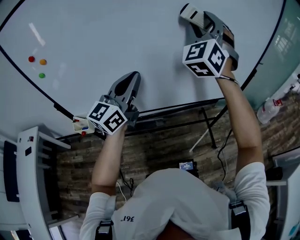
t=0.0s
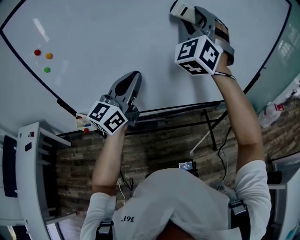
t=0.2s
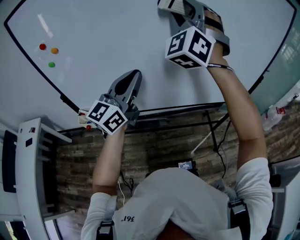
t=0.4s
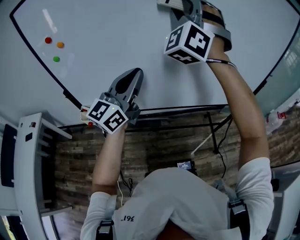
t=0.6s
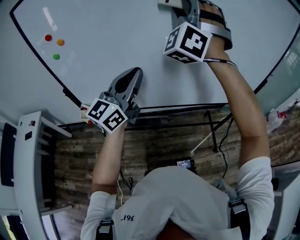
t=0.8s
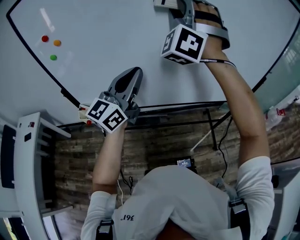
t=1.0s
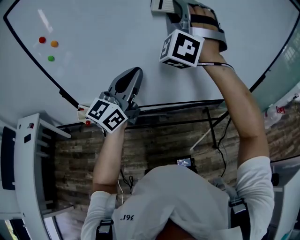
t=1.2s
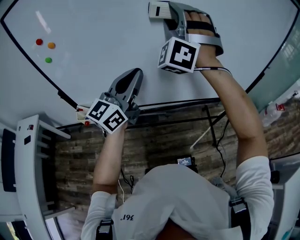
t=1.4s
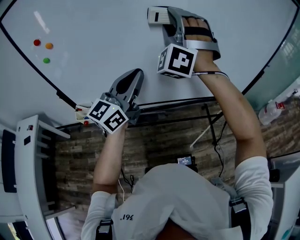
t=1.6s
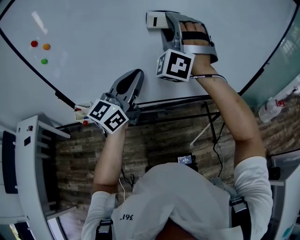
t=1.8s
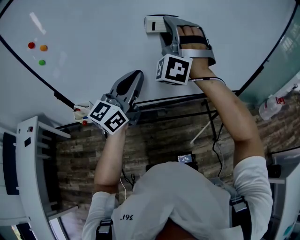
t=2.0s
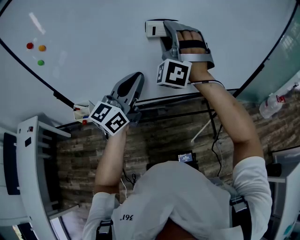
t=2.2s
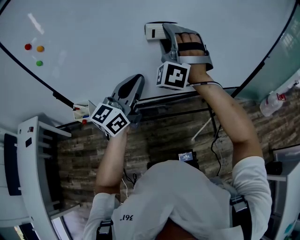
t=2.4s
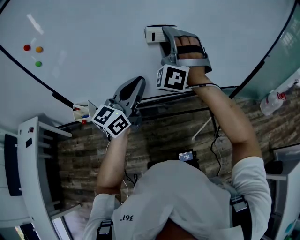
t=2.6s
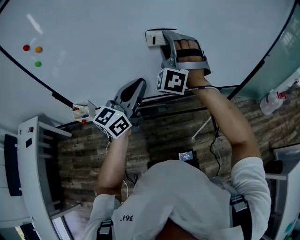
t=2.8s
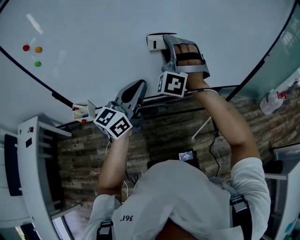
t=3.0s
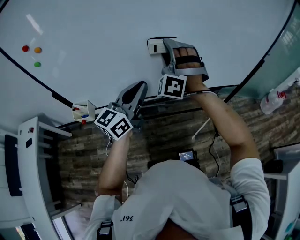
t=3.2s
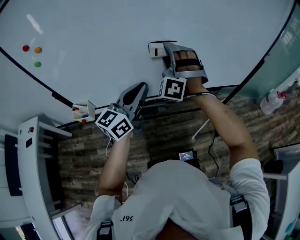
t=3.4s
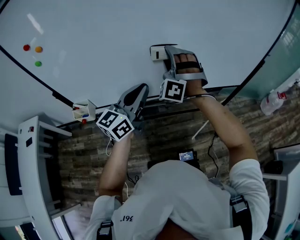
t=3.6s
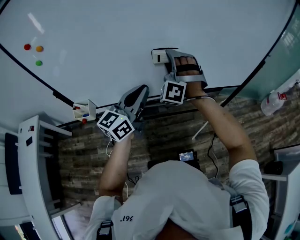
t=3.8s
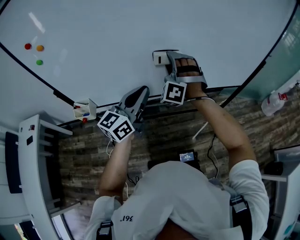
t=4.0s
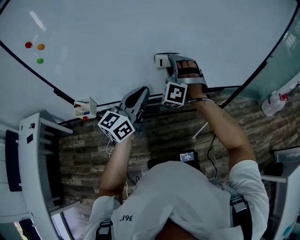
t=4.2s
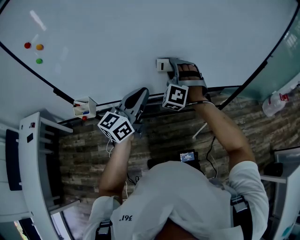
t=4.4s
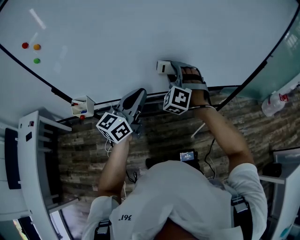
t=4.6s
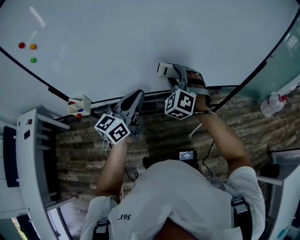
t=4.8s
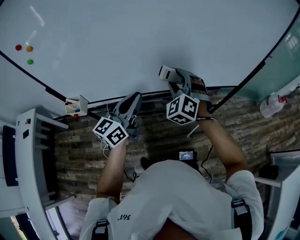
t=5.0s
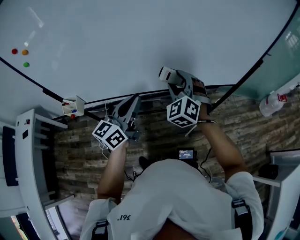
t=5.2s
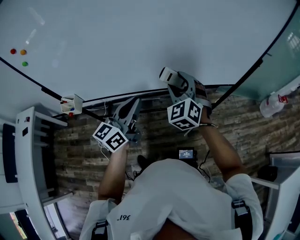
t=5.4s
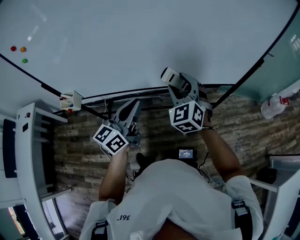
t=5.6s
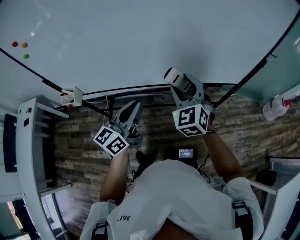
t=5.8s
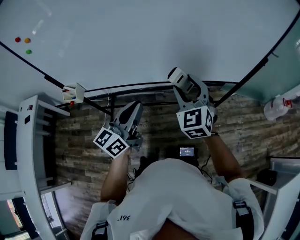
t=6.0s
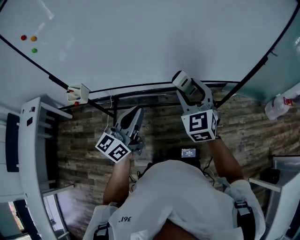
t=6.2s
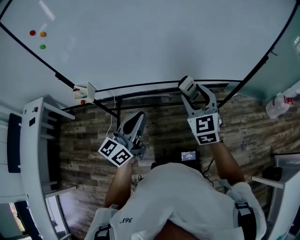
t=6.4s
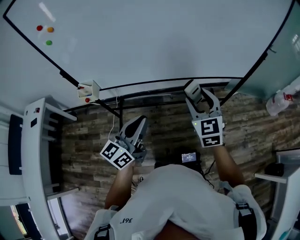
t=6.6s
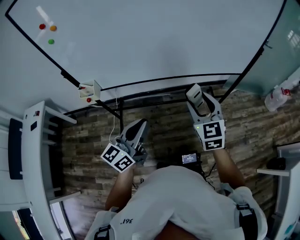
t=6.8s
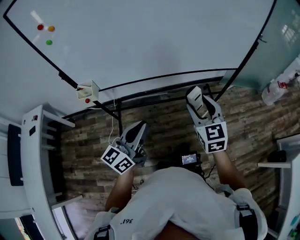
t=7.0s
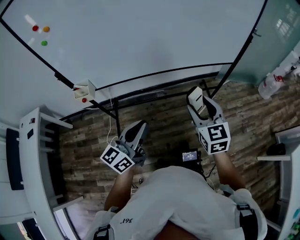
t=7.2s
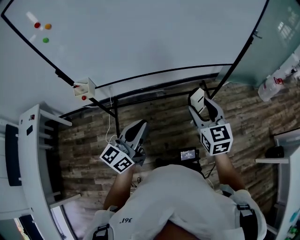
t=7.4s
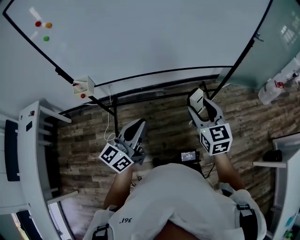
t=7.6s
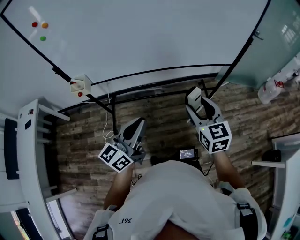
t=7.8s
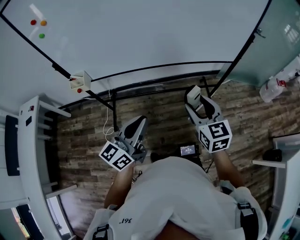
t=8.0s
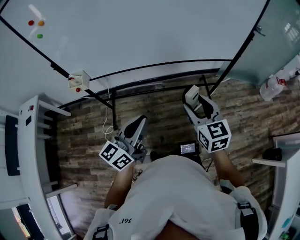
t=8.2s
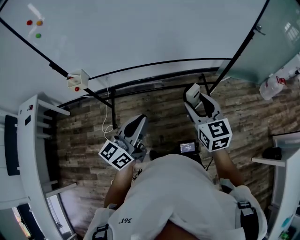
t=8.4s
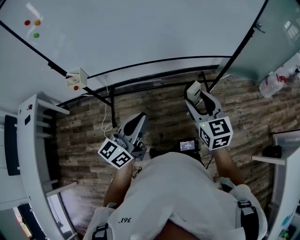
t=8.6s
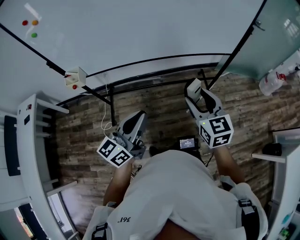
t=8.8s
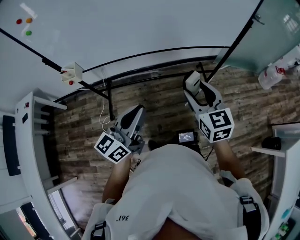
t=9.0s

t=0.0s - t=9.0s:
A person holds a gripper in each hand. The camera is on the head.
t=0.0s - t=1.6s: The right gripper heads to the left, covering some 15 cm, and turns by some 30 degrees.
t=1.6s - t=3.0s: The right gripper shifts roughly 15 cm downward. The left gripper is displaced downward by approximately 5 cm.
t=3.0s - t=4.4s: The right gripper travels downward by approximately 15 cm.
t=4.4s - t=6.0s: The left gripper travels to the right and backward by some 10 cm; the right gripper shifts roughly 20 cm to the right and backward, and rolls clockwise, seen from behind, by about 50 degrees.
t=6.0s - t=7.6s: The two grippers go roughly 20 cm backward. The right gripper turns by roughly 30 degrees.
t=7.6s - t=9.0s: The left gripper is displaced to the right by about 5 cm.

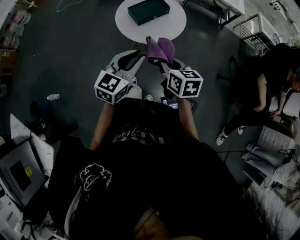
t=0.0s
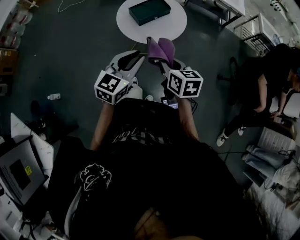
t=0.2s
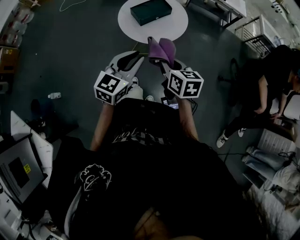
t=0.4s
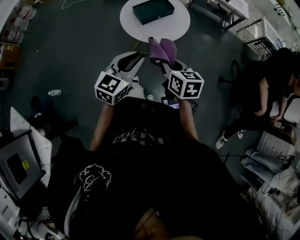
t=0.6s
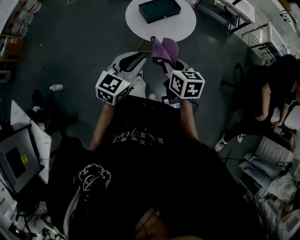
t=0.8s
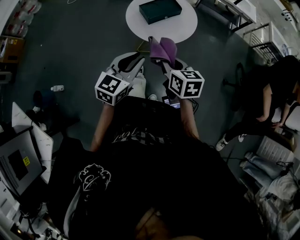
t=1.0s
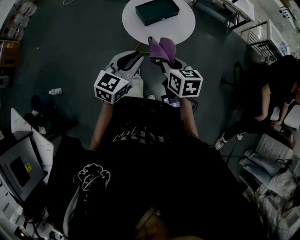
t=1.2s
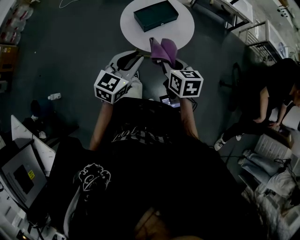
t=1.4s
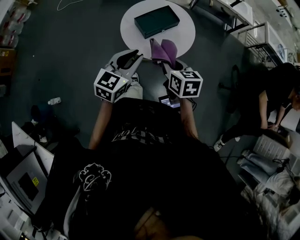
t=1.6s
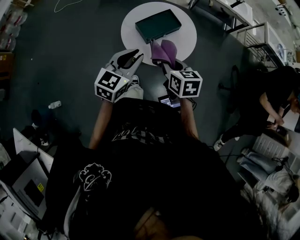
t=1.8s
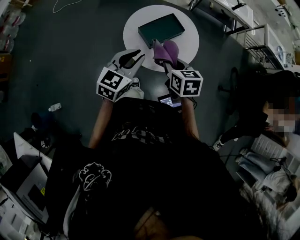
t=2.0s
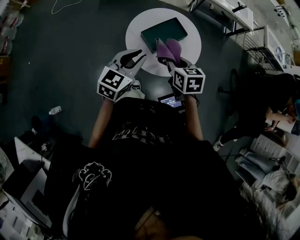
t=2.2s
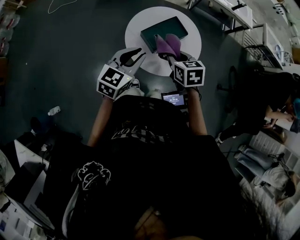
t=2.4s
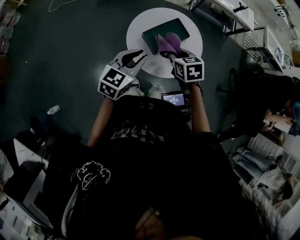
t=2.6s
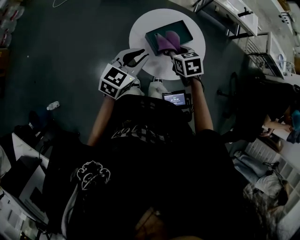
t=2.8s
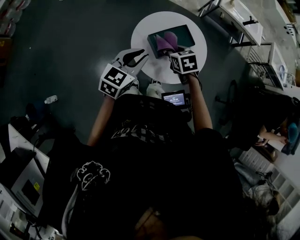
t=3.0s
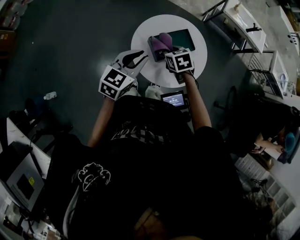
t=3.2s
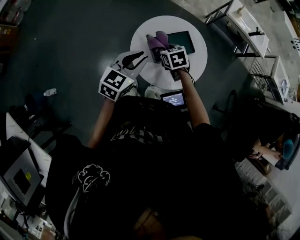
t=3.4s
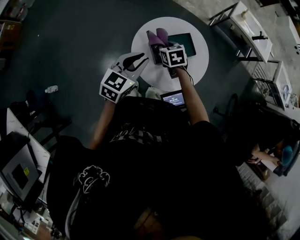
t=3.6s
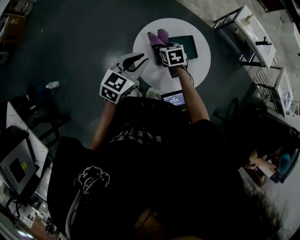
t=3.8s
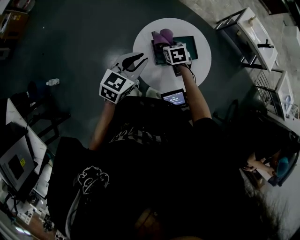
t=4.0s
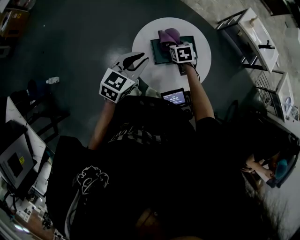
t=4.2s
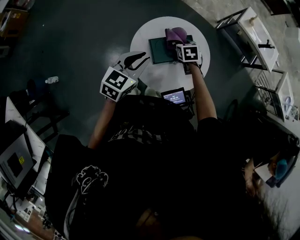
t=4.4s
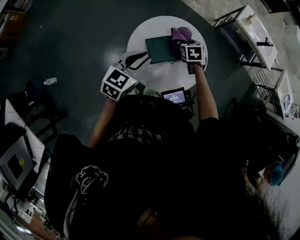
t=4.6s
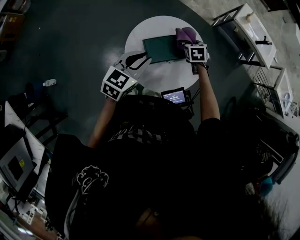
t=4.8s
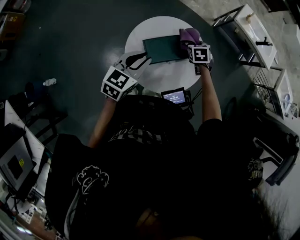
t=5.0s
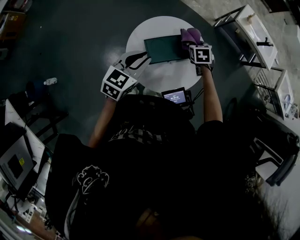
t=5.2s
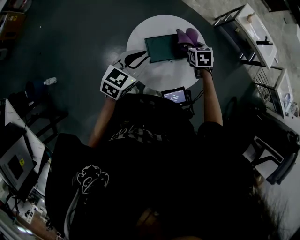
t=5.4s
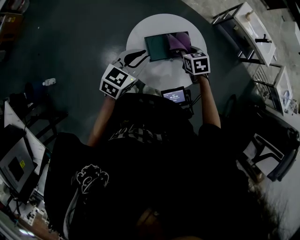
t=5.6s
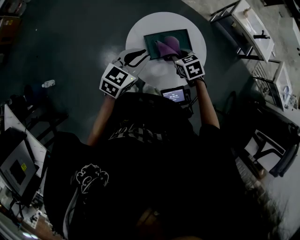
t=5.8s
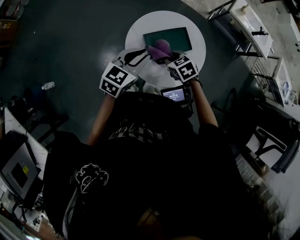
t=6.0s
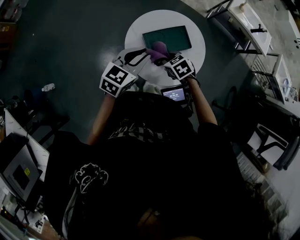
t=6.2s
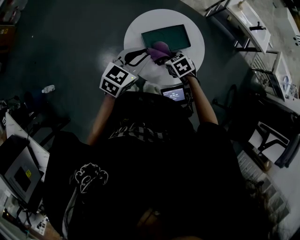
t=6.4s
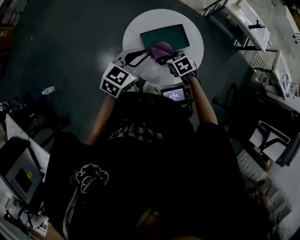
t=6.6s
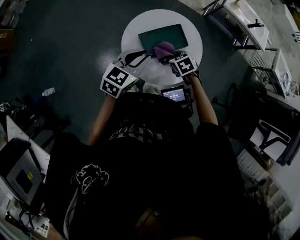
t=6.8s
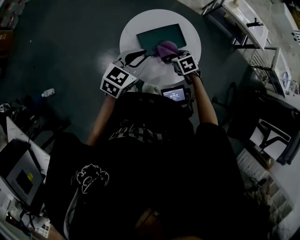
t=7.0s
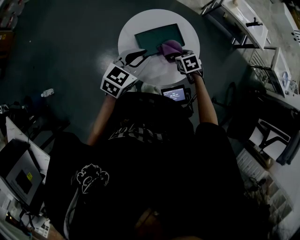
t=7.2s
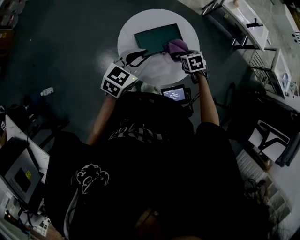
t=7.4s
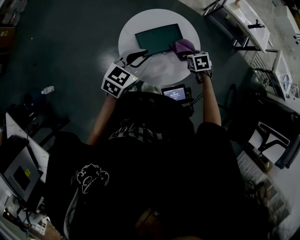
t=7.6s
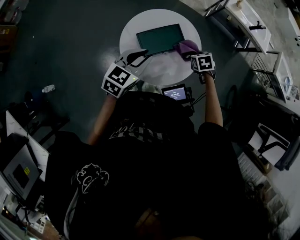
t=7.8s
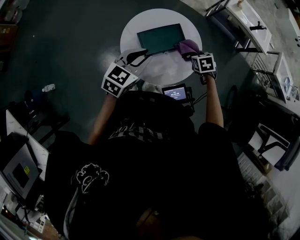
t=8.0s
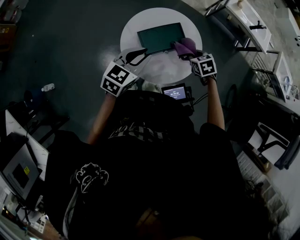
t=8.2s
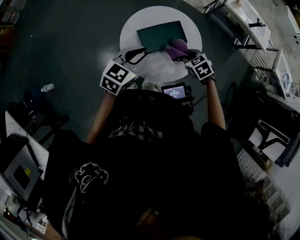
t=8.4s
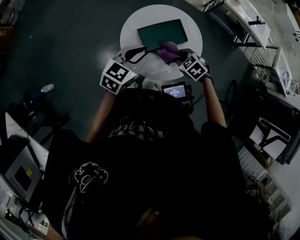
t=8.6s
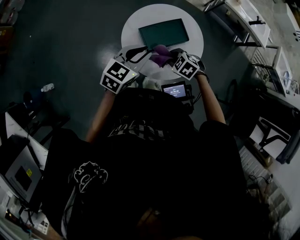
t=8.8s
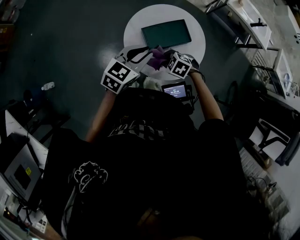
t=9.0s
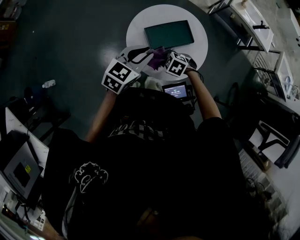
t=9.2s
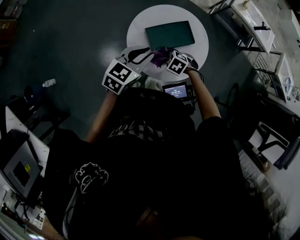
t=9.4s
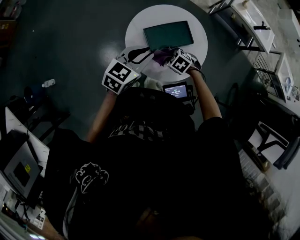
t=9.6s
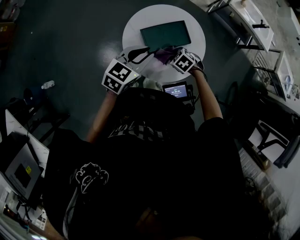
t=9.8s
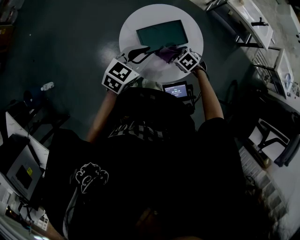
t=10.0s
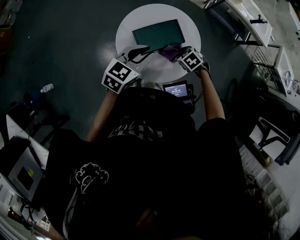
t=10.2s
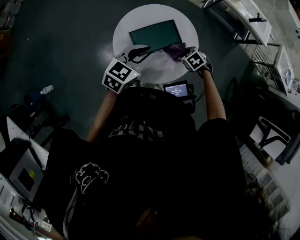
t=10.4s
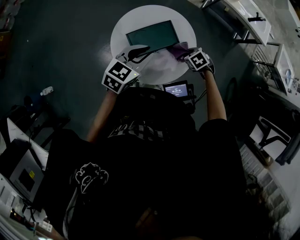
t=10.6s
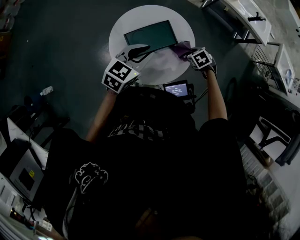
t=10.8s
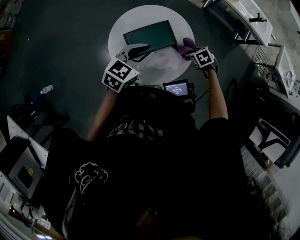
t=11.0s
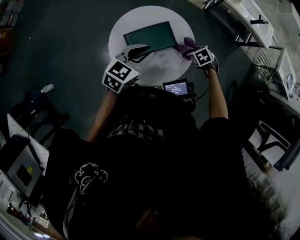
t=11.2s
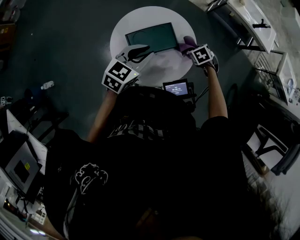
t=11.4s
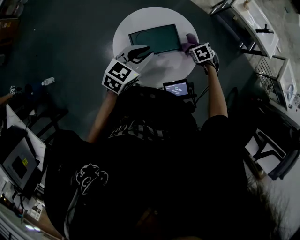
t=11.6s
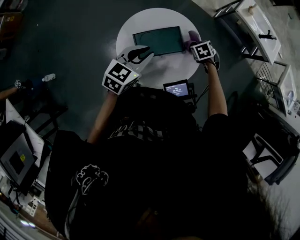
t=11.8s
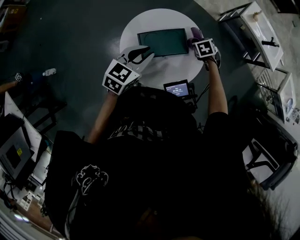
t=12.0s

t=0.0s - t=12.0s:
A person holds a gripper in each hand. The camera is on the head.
t=0.0s - t=1.6s: The right gripper heads forward, covering roughly 10 cm; the left gripper is displaced forward and to the left by roughly 15 cm.
t=1.6s - t=3.0s: The grippers both shift forward and to the left by roughly 20 cm. The right gripper changes its angle by some 30 degrees.
t=3.0s - t=4.4s: The right gripper travels forward, downward and to the right by approximately 15 cm.
t=4.4s - t=6.0s: The right gripper travels backward by some 15 cm, and rotates some 20 degrees.
t=6.0s - t=7.6s: The right gripper is displaced to the right by approximately 20 cm, and swivels about 30 degrees.
t=7.6s - t=9.0s: The right gripper shifts by roughly 20 cm, and twists about 40 degrees counterclockwise, seen from behind.
t=9.0s - t=10.4s: The left gripper ends up roughly 5 cm from where it was. The right gripper shifts by roughly 20 cm, and turns by approximately 30 degrees.
t=10.4s - t=12.0s: The right gripper changes place by some 15 cm.

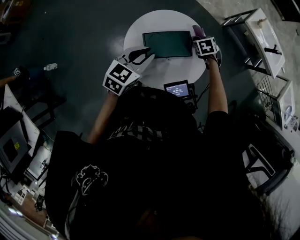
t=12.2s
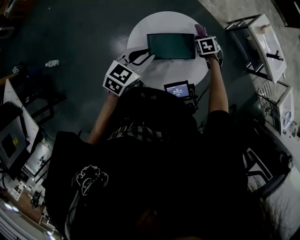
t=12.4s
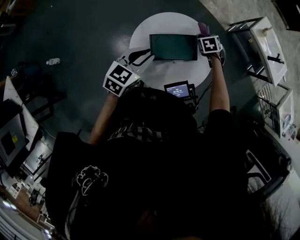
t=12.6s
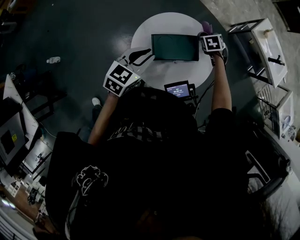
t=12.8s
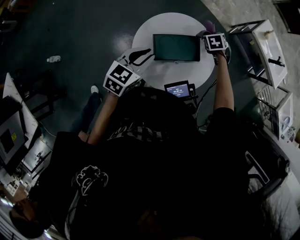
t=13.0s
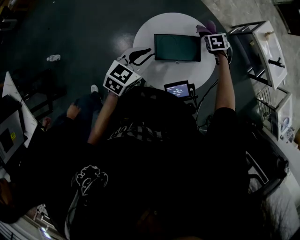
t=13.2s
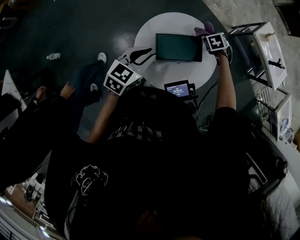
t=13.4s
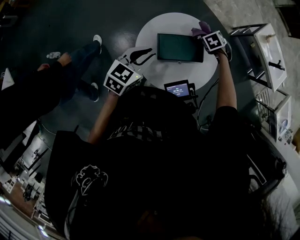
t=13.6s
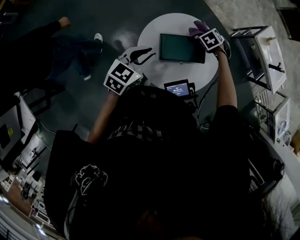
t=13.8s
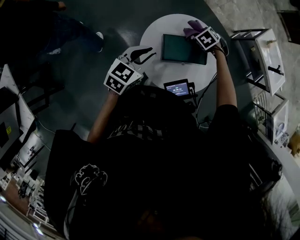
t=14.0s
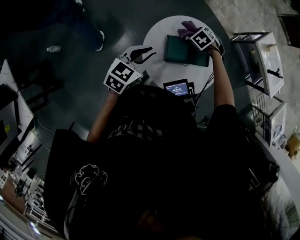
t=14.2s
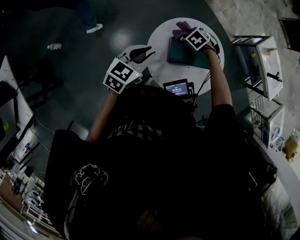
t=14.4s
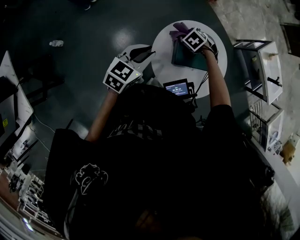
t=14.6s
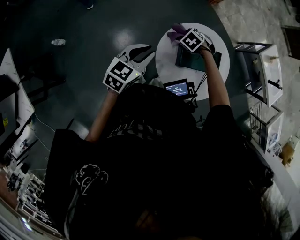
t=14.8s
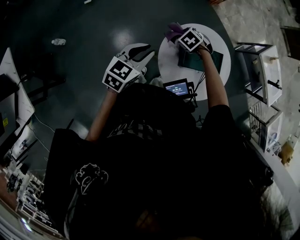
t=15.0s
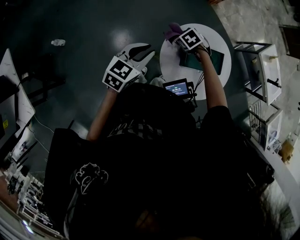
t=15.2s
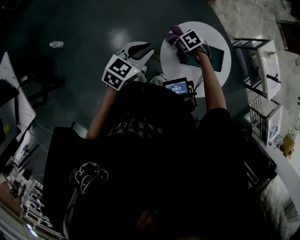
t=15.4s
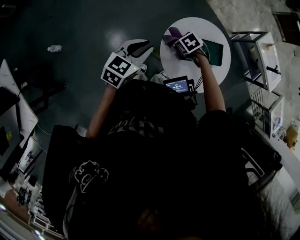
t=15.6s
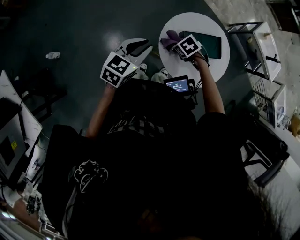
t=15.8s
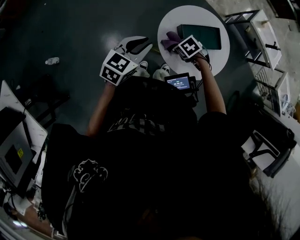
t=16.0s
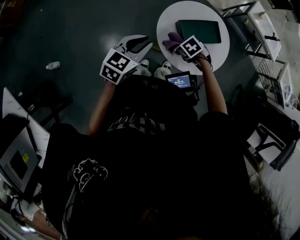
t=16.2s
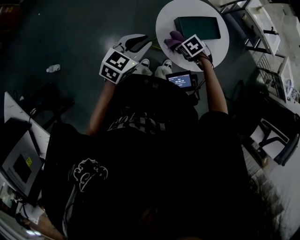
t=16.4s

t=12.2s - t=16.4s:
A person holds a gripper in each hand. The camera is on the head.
t=12.2s - t=13.6s: The grippers both shift to the left by about 5 cm.
t=13.6s - t=15.0s: The left gripper shifts by roughly 15 cm; the right gripper moves some 25 cm, and swivels approximately 30 degrees.
t=15.0s - t=16.4s: The right gripper shifts by approximately 15 cm, and turns by some 30 degrees.
